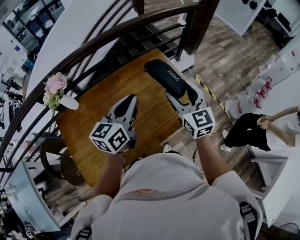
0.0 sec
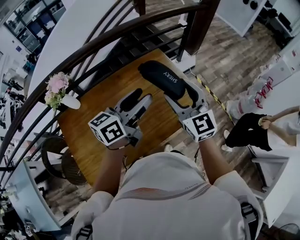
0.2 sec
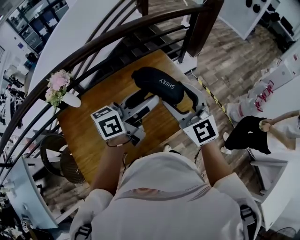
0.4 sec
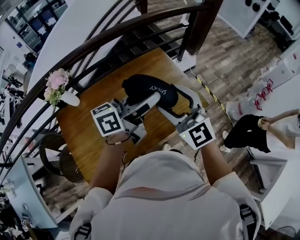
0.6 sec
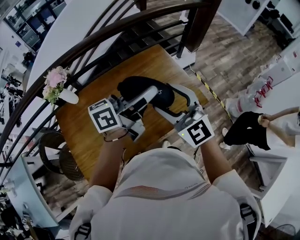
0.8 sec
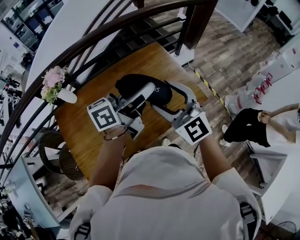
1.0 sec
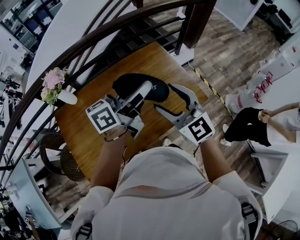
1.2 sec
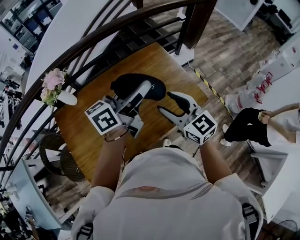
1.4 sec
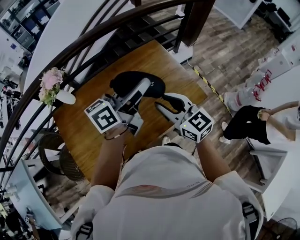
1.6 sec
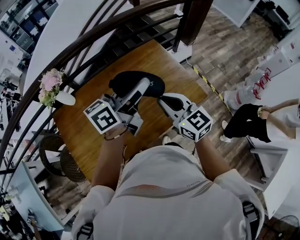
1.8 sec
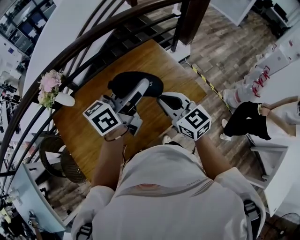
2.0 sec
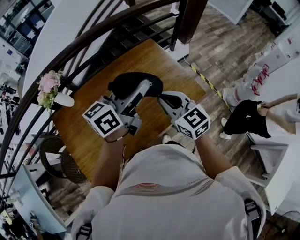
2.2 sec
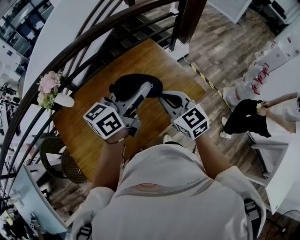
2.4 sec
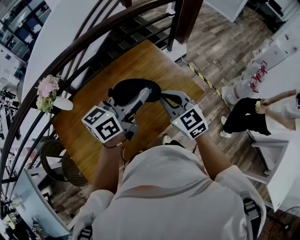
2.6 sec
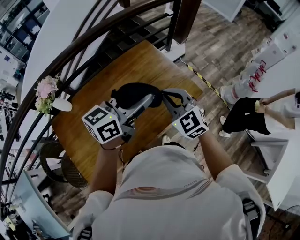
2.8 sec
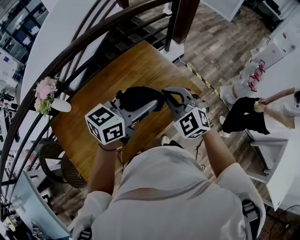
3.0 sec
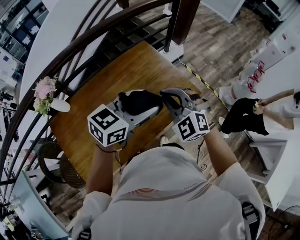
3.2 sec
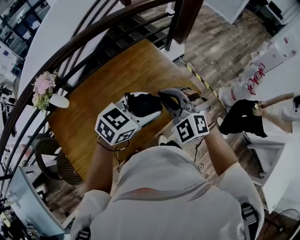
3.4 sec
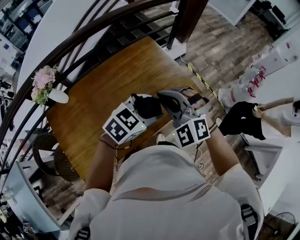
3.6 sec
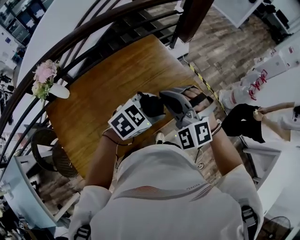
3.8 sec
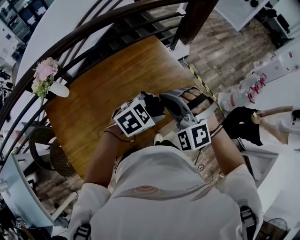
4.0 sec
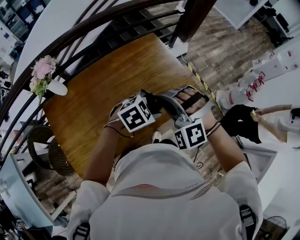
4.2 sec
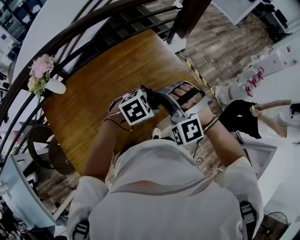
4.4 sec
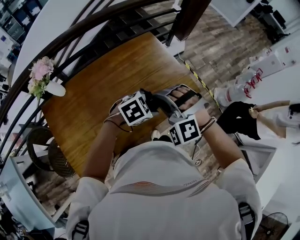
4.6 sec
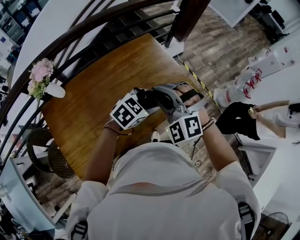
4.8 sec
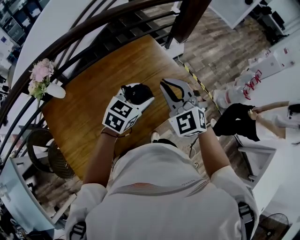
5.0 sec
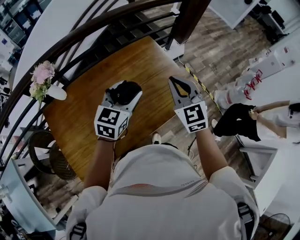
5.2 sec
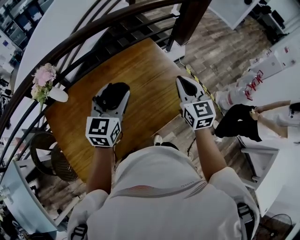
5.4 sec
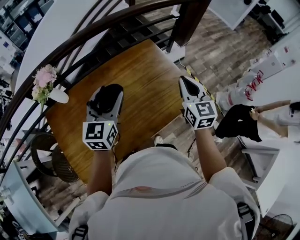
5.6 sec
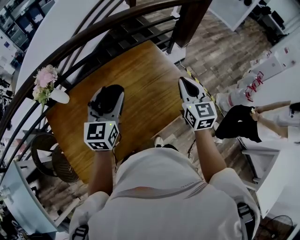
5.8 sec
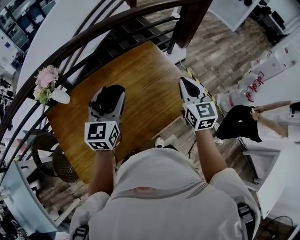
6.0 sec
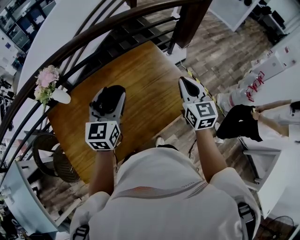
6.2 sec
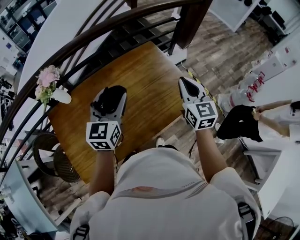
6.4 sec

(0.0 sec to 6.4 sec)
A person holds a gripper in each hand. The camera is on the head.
0.0 sec - 1.6 sec: The right gripper heads backward and to the left, covering roughly 10 cm, turns by about 20 degrees, and closes. Meanwhile the left gripper moves about 5 cm, rotates approximately 30 degrees, and opens.
1.6 sec - 3.2 sec: The left gripper travels to the right and backward by approximately 10 cm, and turns by about 40 degrees; the right gripper twists some 50 degrees counterclockwise, seen from behind.
3.2 sec - 4.8 sec: The right gripper swivels approximately 20 degrees; the left gripper travels downward by about 15 cm, and rotates about 20 degrees.
4.8 sec - 6.4 sec: The right gripper shifts some 15 cm to the right and forward, and rotates around the line of its fingers by roughly 70 degrees, clockwise from behind, while the left gripper heads to the left and upward, covering about 20 cm, and changes its angle by approximately 50 degrees.

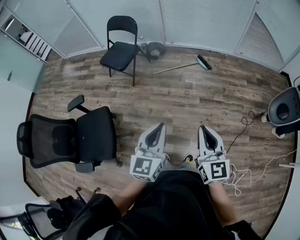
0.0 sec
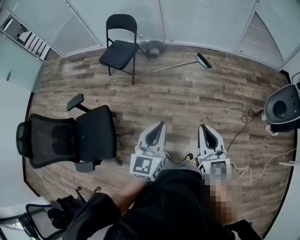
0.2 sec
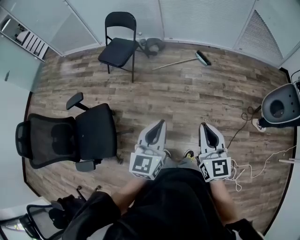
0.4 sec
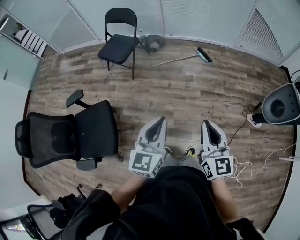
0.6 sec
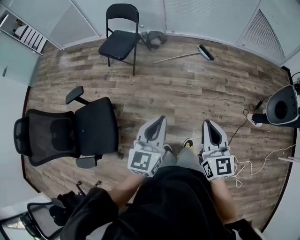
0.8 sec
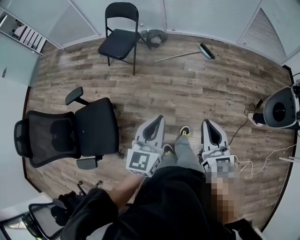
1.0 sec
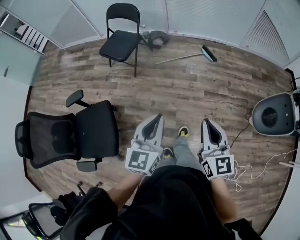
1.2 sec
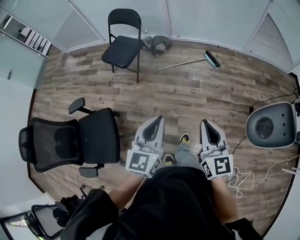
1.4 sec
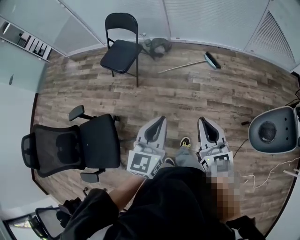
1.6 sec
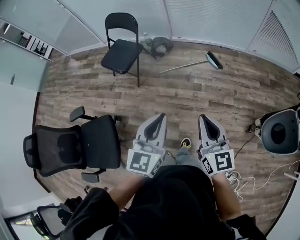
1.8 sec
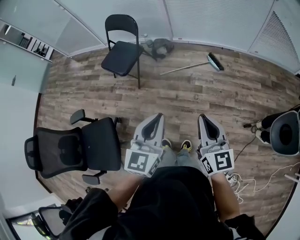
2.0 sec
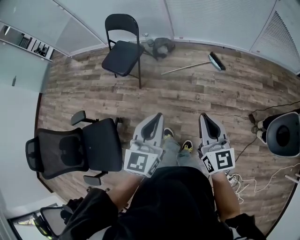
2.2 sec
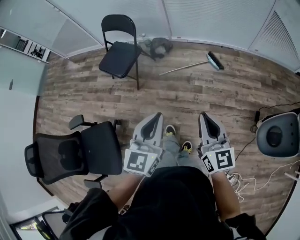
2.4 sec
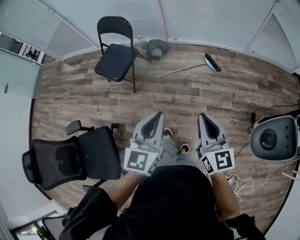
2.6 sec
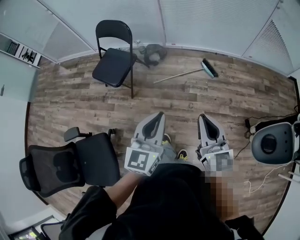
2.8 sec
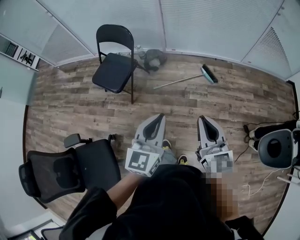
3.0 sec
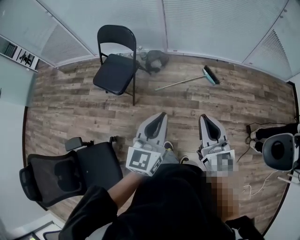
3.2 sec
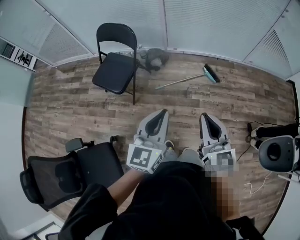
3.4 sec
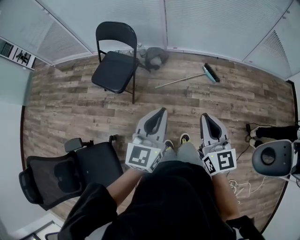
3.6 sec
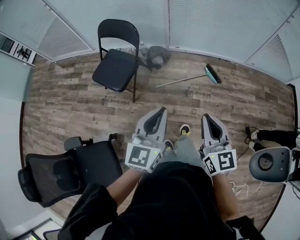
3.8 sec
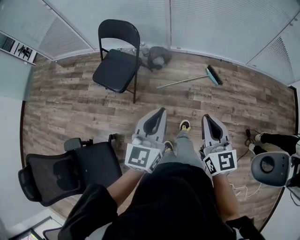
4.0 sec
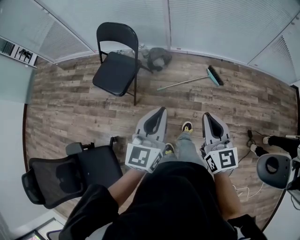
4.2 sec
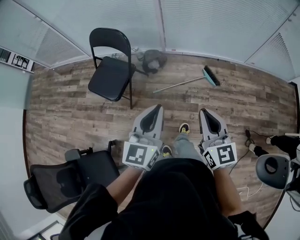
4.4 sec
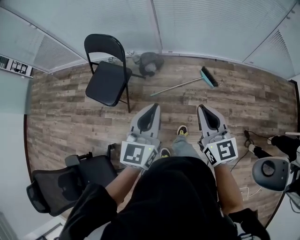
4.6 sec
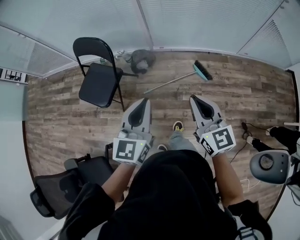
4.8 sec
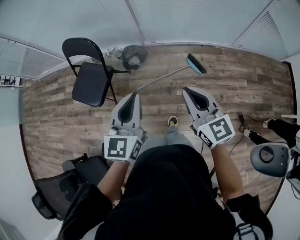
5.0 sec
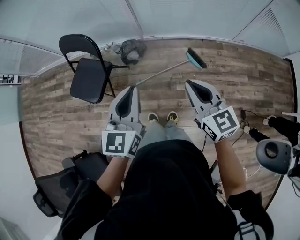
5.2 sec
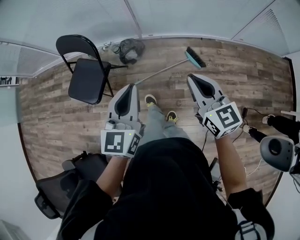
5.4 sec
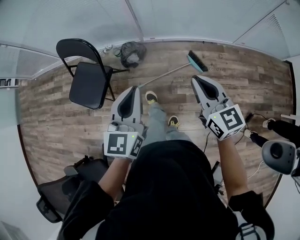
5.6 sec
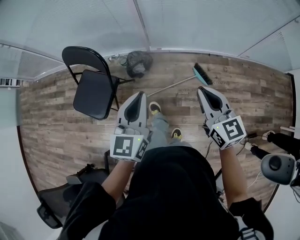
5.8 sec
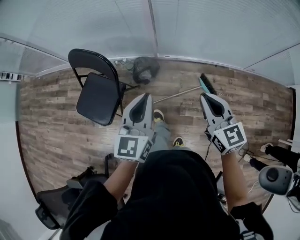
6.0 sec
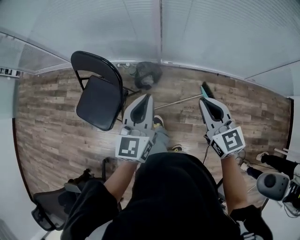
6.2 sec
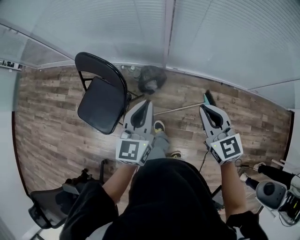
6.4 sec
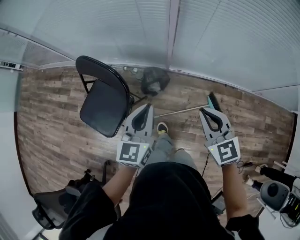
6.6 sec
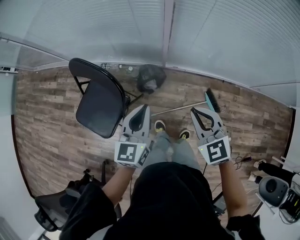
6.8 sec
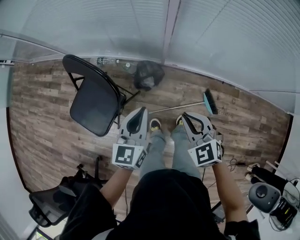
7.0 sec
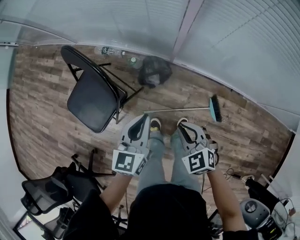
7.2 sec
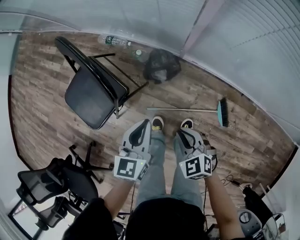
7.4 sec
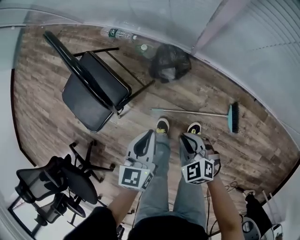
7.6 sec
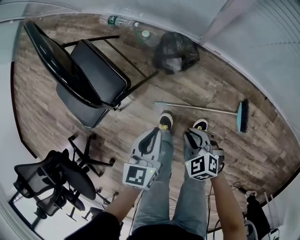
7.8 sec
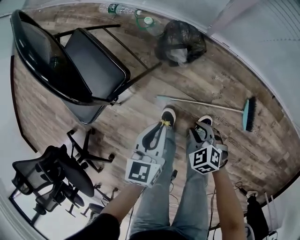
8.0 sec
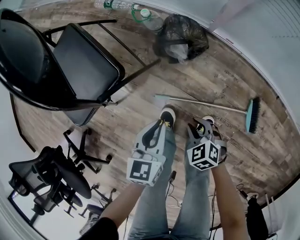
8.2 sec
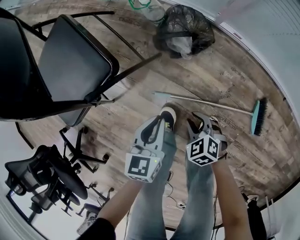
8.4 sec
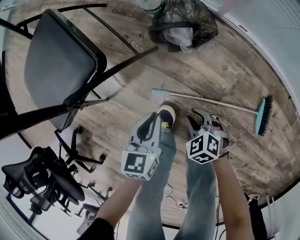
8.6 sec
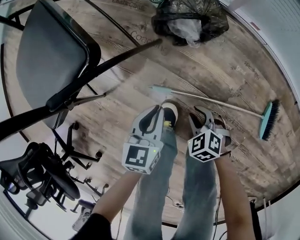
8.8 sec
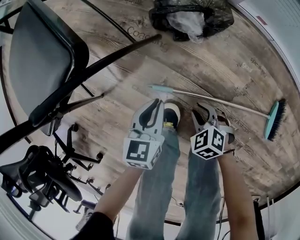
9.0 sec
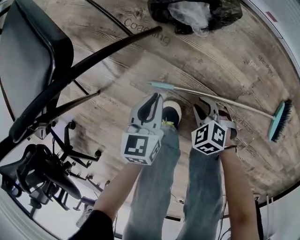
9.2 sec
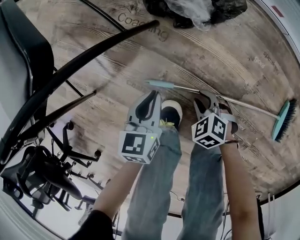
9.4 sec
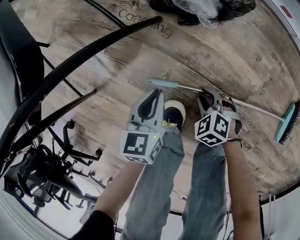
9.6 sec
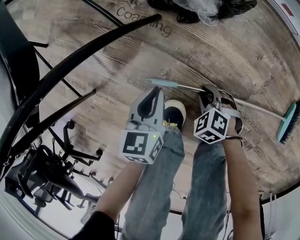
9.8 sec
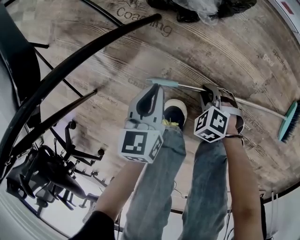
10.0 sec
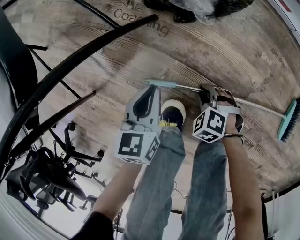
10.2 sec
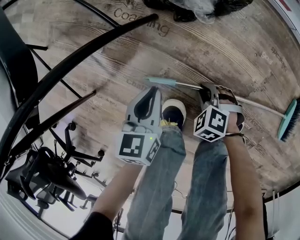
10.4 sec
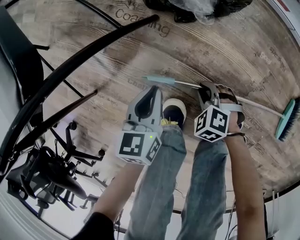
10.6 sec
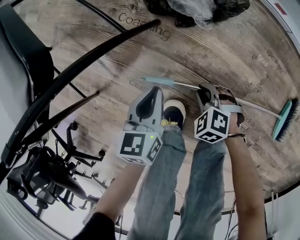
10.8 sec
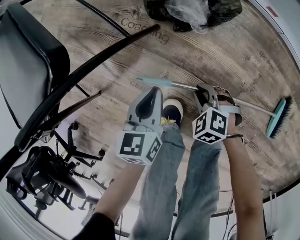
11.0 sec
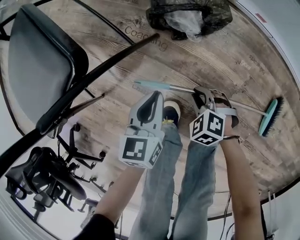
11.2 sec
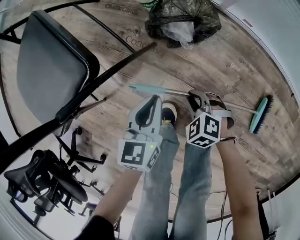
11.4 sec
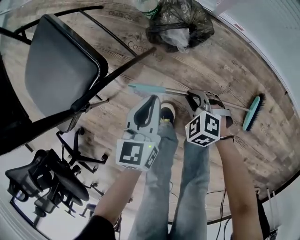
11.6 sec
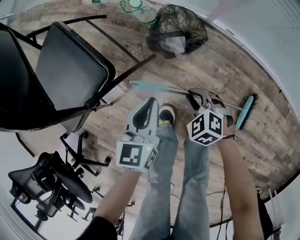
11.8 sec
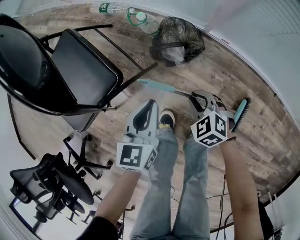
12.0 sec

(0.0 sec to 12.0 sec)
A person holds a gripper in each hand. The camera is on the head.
0.0 sec - 1.6 sec: The two grippers go roughly 20 cm forward.
1.6 sec - 3.0 sec: Both grippers travel together forward, roughly 20 cm.
3.0 sec - 4.4 sec: Both grippers move forward, approximately 15 cm.
4.4 sec - 6.0 sec: Both grippers move forward, some 35 cm.
6.0 sec - 7.6 sec: The grippers both shift downward by roughly 40 cm. The right gripper tips its fingers downward by some 30 degrees. The left gripper swivels about 40 degrees.
7.6 sec - 9.0 sec: Both grippers travel together downward, about 50 cm. The right gripper opens its fingers.
9.0 sec - 10.4 sec: The two grippers go about 10 cm downward.
10.4 sec - 12.0 sec: The two grippers go roughly 35 cm upward. The right gripper swivels approximately 20 degrees.

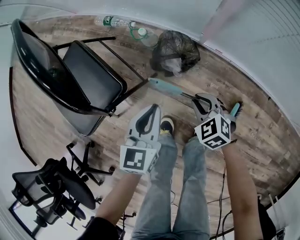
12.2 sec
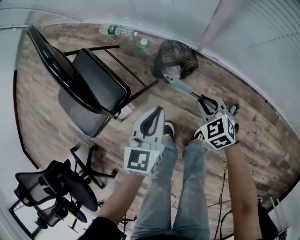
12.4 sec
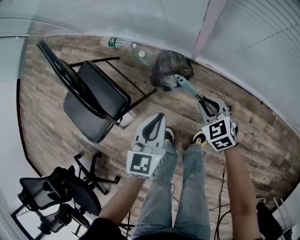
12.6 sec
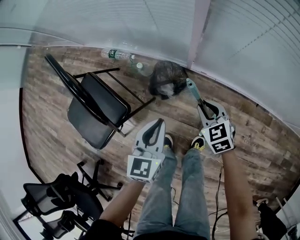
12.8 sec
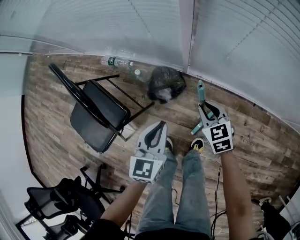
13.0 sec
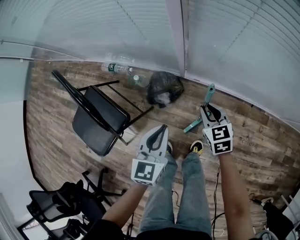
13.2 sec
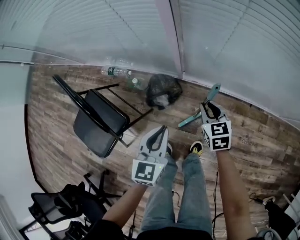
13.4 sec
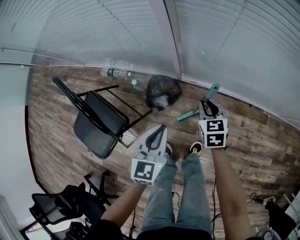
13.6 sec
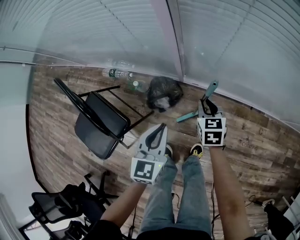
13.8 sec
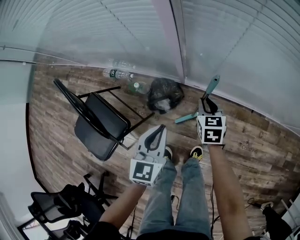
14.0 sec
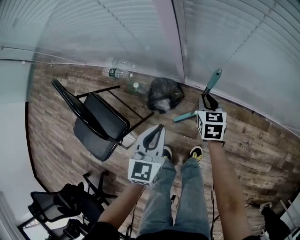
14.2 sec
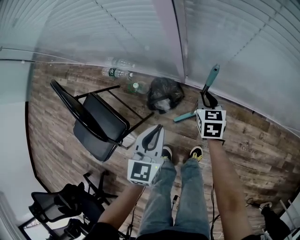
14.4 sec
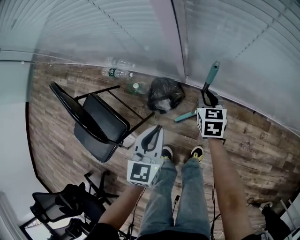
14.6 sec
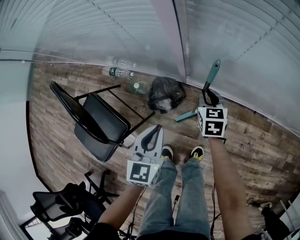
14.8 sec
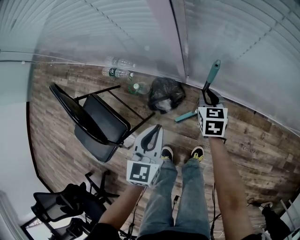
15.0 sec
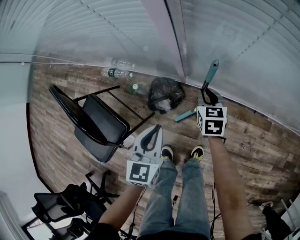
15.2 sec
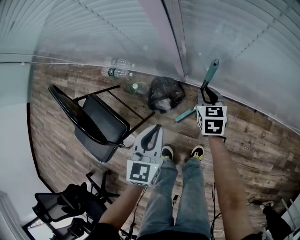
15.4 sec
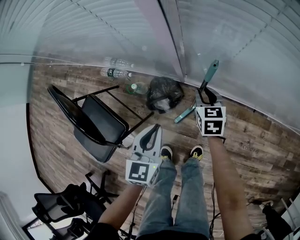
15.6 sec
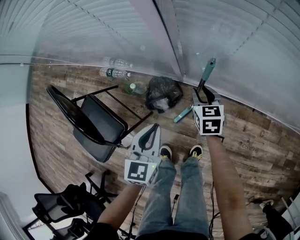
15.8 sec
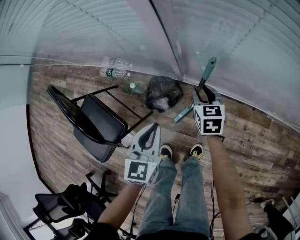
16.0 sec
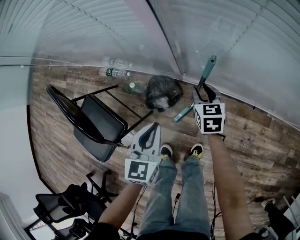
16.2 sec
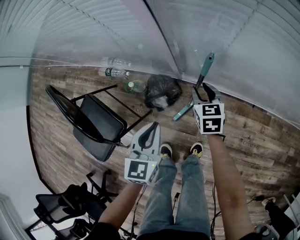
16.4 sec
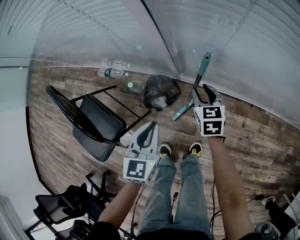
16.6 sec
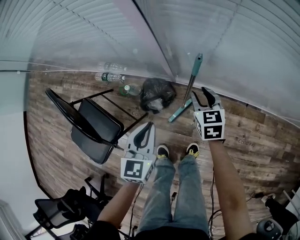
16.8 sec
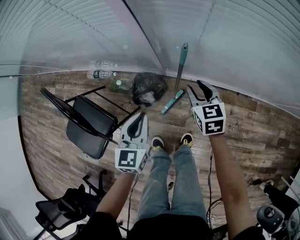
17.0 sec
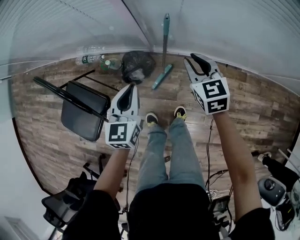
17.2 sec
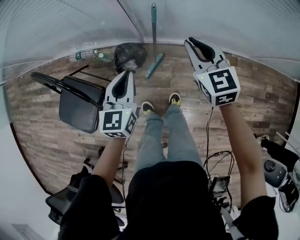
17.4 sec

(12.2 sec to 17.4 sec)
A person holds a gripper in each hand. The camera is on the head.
12.2 sec - 14.0 sec: The right gripper changes place by roughly 30 cm, and turns by approximately 50 degrees. Meanwhile the left gripper heads upward, covering roughly 20 cm.
14.0 sec - 15.6 sec: The right gripper heads forward, covering about 5 cm.
15.6 sec - 17.4 sec: The right gripper shifts about 30 cm upward and backward, while the left gripper shifts some 15 cm upward.
